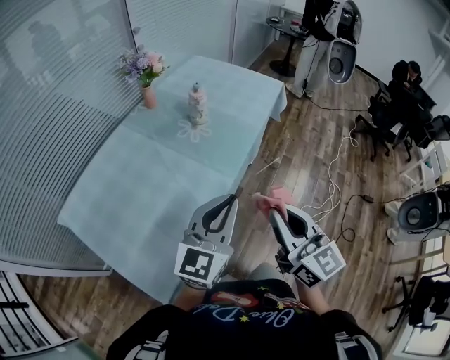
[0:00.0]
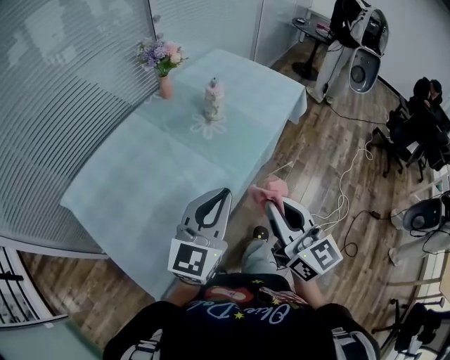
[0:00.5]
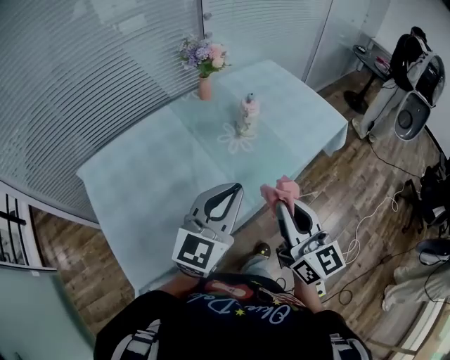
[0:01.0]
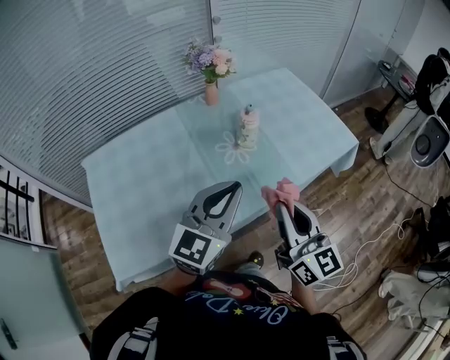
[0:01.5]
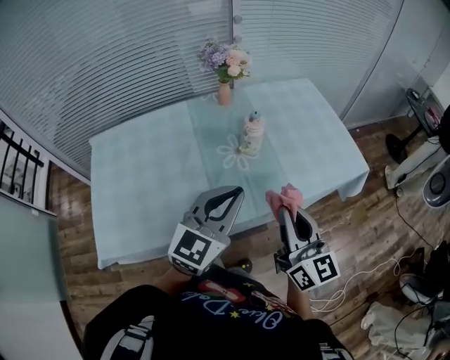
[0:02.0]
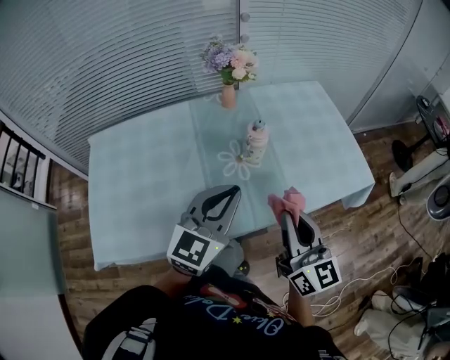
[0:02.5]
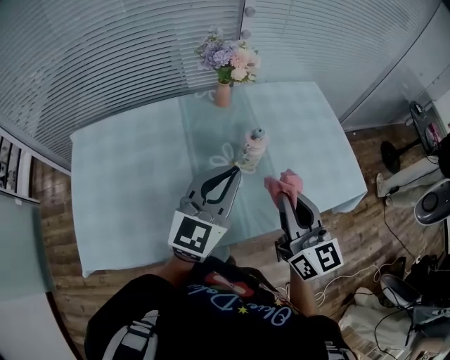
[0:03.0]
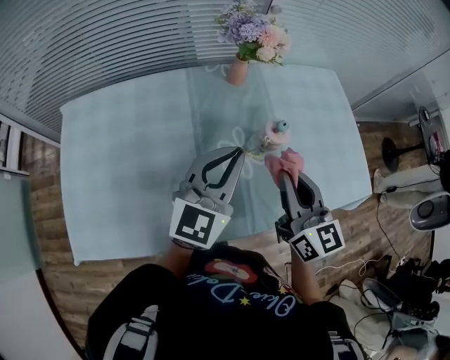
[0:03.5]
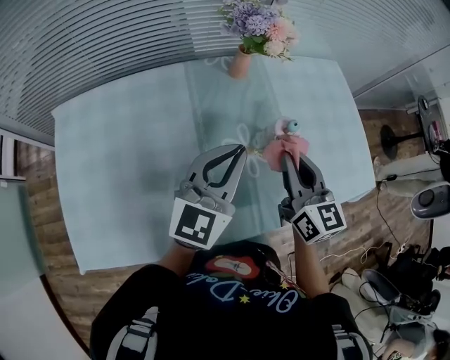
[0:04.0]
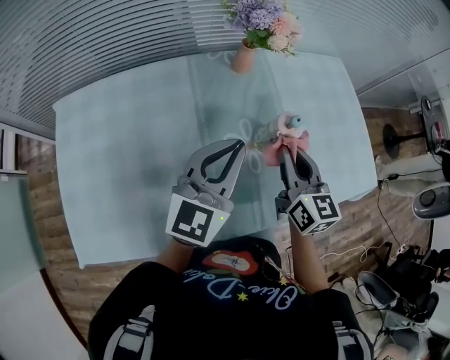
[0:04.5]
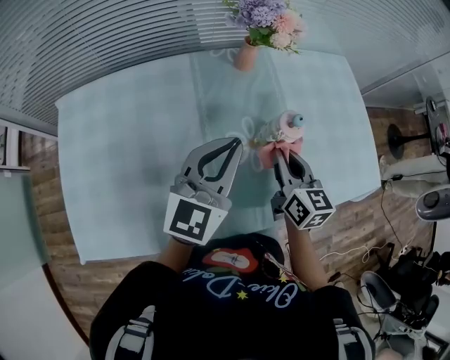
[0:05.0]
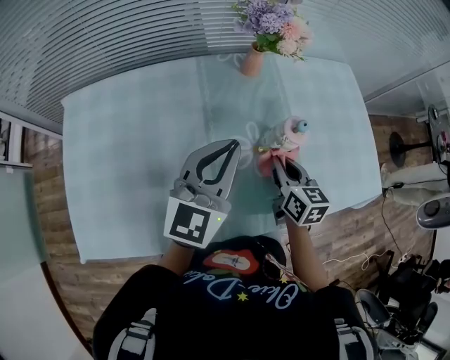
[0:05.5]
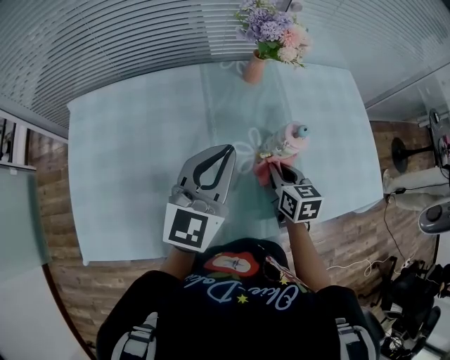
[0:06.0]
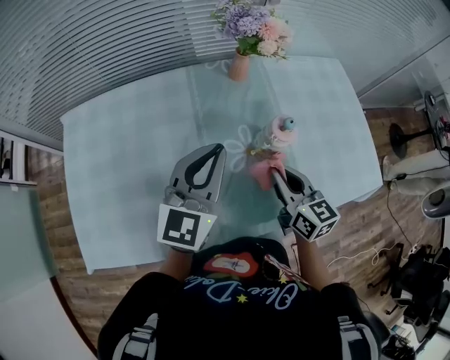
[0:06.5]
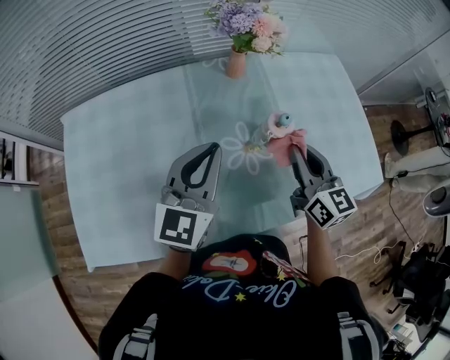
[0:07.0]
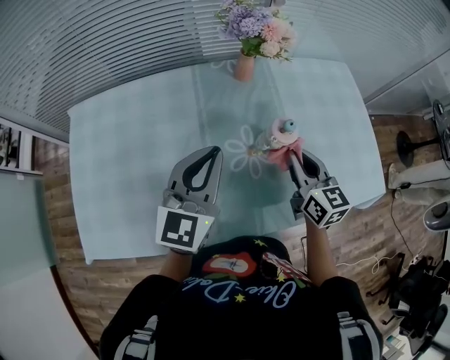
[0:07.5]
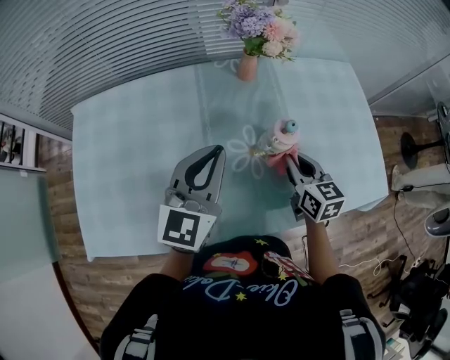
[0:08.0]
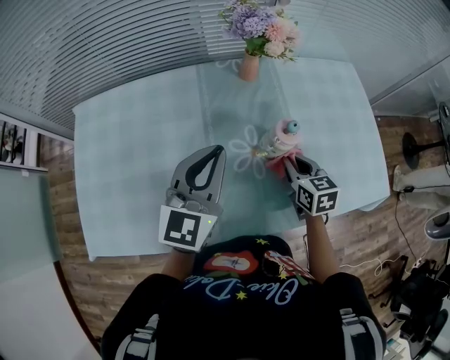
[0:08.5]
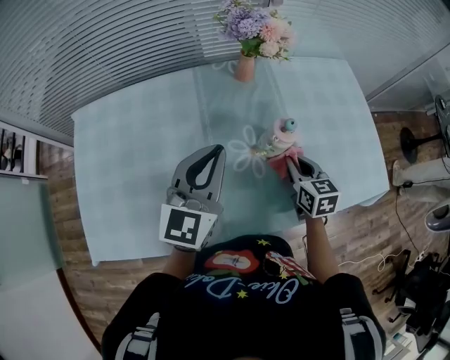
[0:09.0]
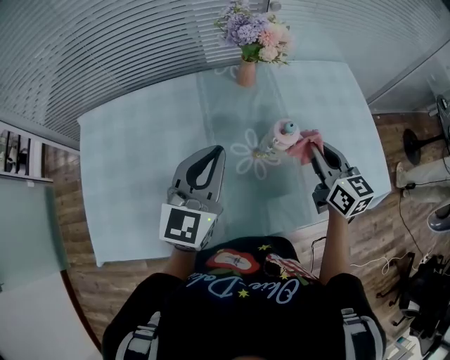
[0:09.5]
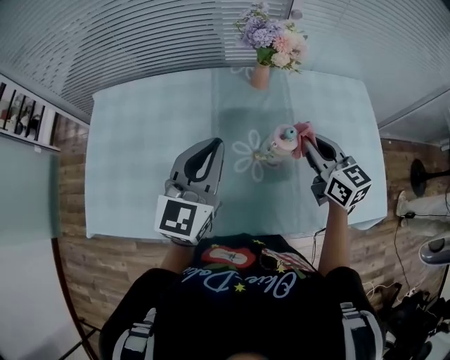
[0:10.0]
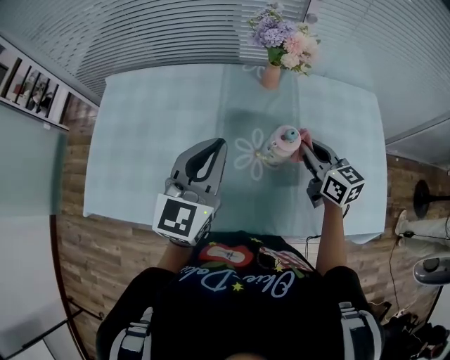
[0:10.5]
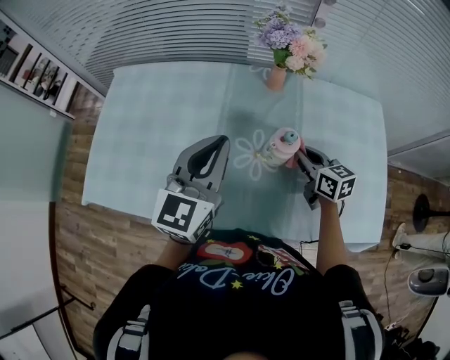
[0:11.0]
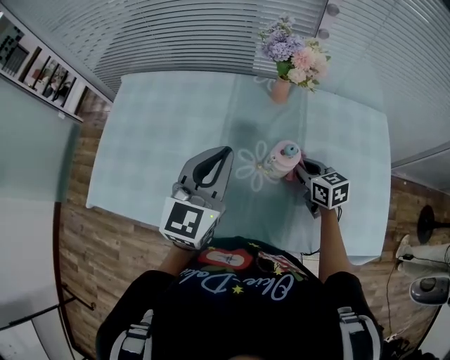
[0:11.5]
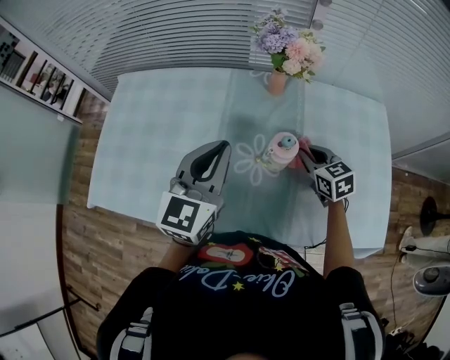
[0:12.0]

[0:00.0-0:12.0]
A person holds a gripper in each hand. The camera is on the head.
0.0 to 2.0 s: The left gripper ends up about 25 cm from where it was, and swivels approximately 40 degrees. The right gripper changes place by some 30 cm, and swivels some 30 degrees.
2.0 to 4.0 s: The left gripper is displaced forward and to the left by roughly 20 cm; the right gripper heads forward, covering some 25 cm.
4.0 to 6.0 s: The right gripper travels downward by roughly 15 cm, and swivels some 30 degrees.
6.0 to 8.0 s: The right gripper travels upward by approximately 5 cm.
8.0 to 10.0 s: The right gripper travels upward by approximately 10 cm.
10.0 to 12.0 s: The right gripper shifts approximately 10 cm downward, and changes its angle by some 20 degrees.

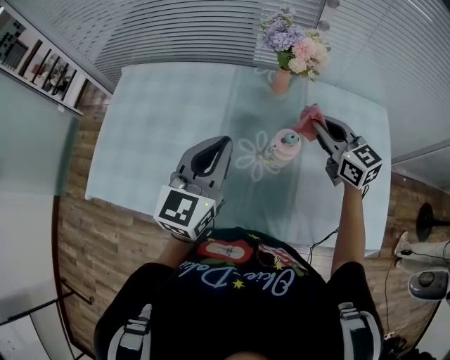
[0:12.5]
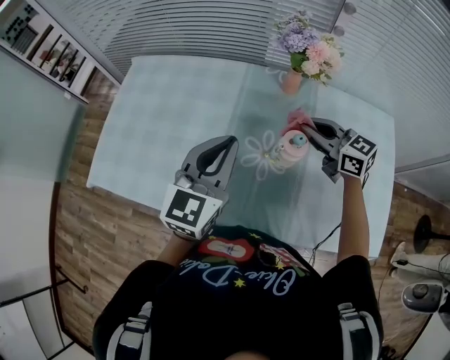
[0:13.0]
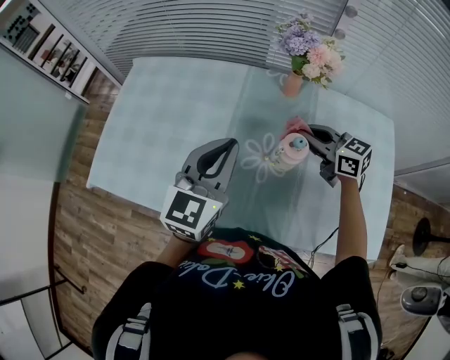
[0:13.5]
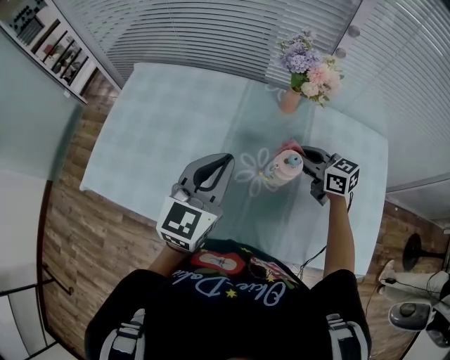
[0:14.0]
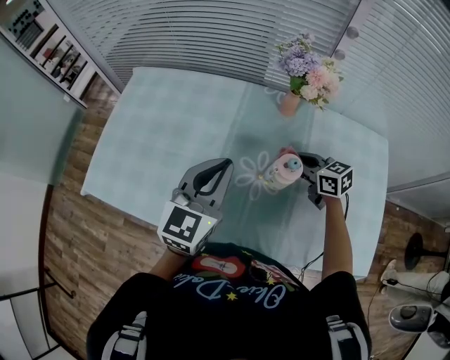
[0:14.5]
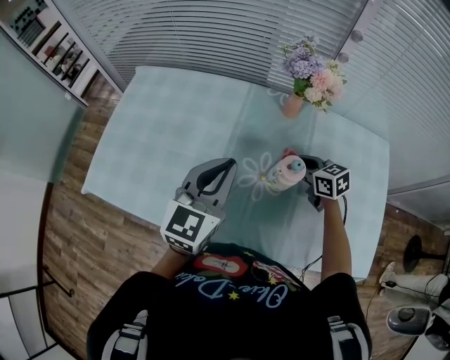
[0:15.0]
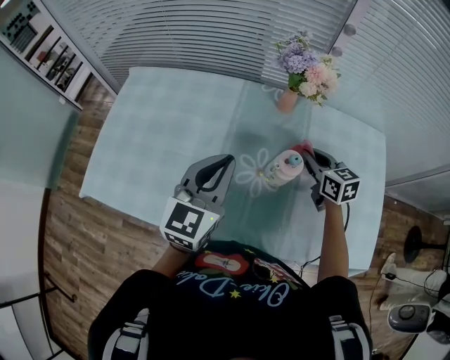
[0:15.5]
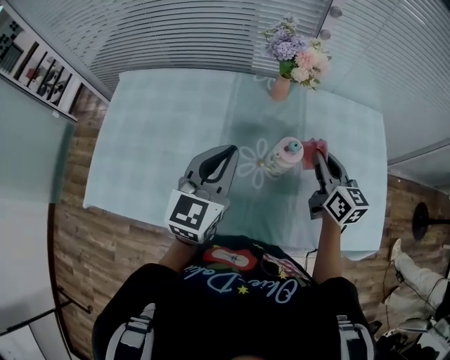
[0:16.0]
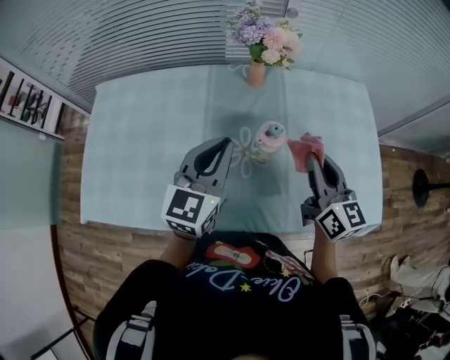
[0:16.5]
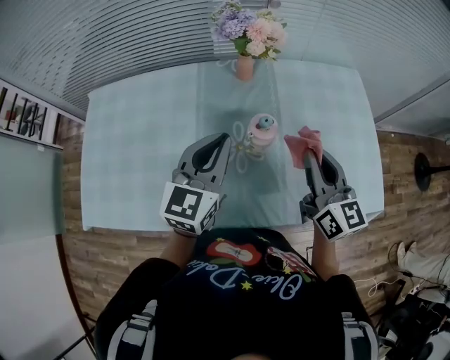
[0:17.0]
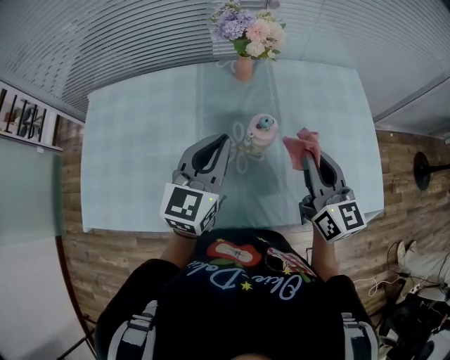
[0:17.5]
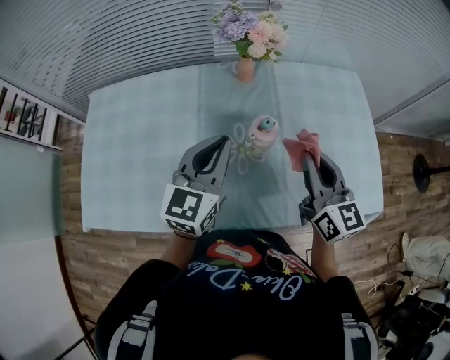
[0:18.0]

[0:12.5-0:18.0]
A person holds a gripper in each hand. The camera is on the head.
12.5 to 14.5 s: The right gripper moves downward, some 10 cm, and swivels approximately 20 degrees.
14.5 to 16.0 s: The right gripper moves upward, backward and to the right, some 10 cm, and turns by roughly 40 degrees.
16.0 to 18.0 s: The right gripper is displaced backward and upward by some 10 cm.

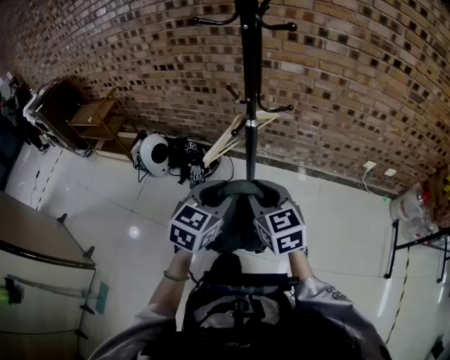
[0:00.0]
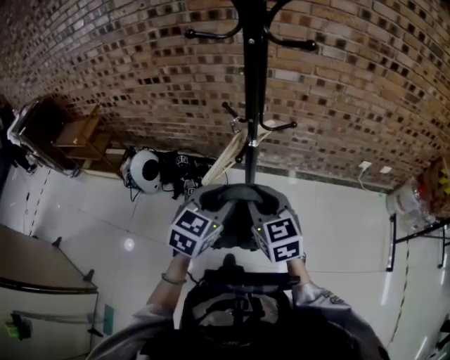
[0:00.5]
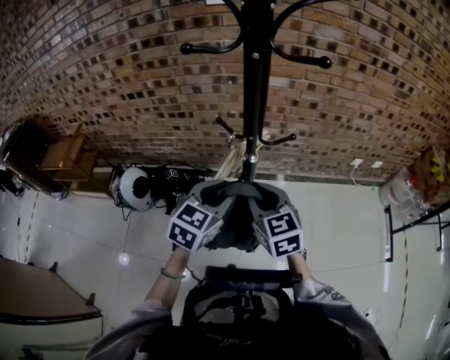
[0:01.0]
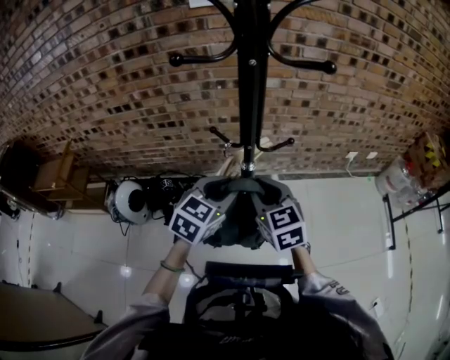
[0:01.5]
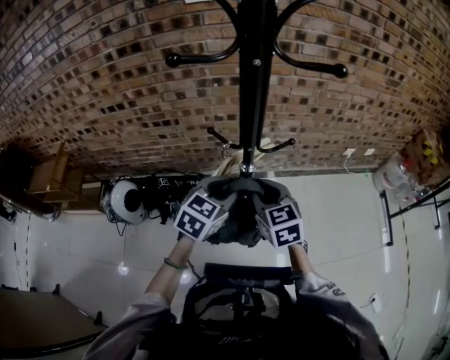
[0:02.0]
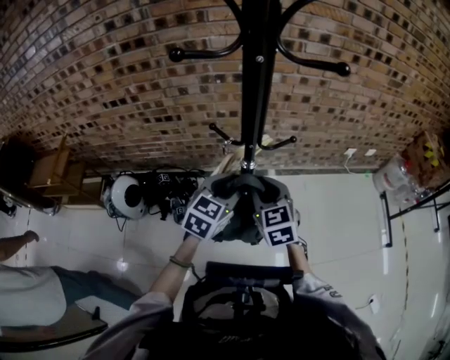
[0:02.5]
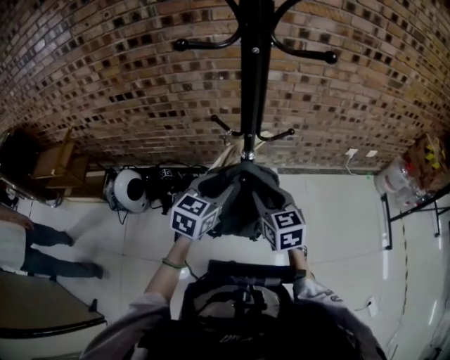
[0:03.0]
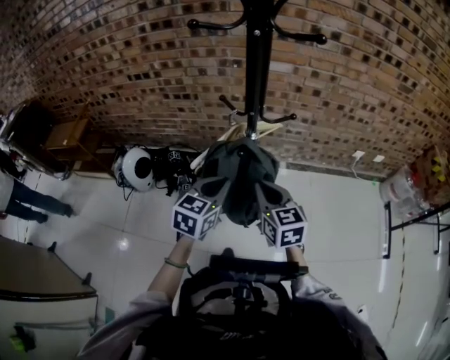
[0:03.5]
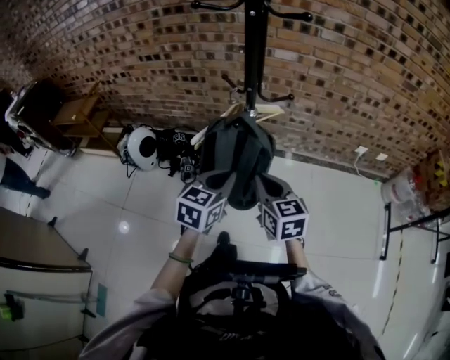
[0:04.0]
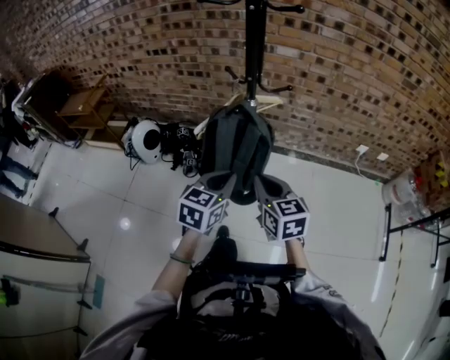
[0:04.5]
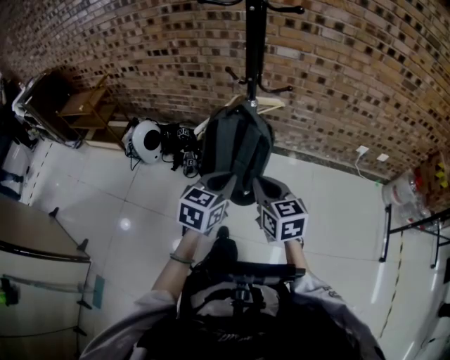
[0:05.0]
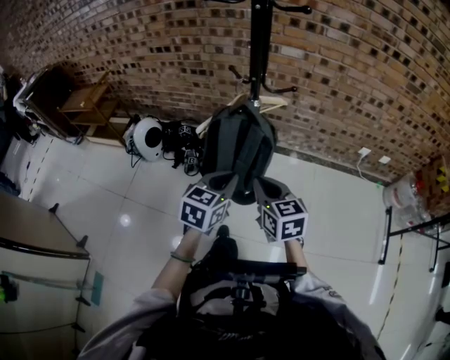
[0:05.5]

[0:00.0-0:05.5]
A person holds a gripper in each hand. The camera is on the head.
0.0 to 2.0 s: The grippers both shift forward by some 20 cm. The left gripper turns by roughly 20 degrees; the right gripper swivels roughly 20 degrees.
2.0 to 3.5 s: Both grippers travel together backward, approximately 10 cm. The left gripper closes its fingers.
3.5 to 5.5 s: The left gripper is displaced backward and to the right by about 15 cm. Meanwhile the right gripper moves backward, roughly 10 cm.

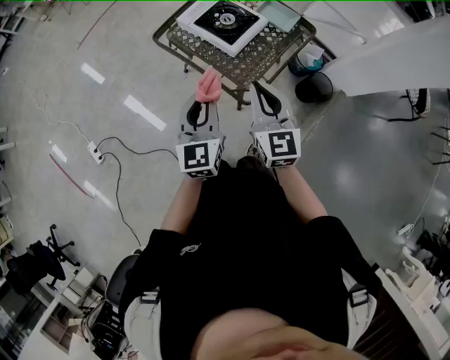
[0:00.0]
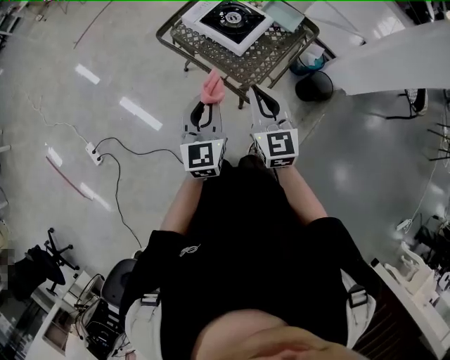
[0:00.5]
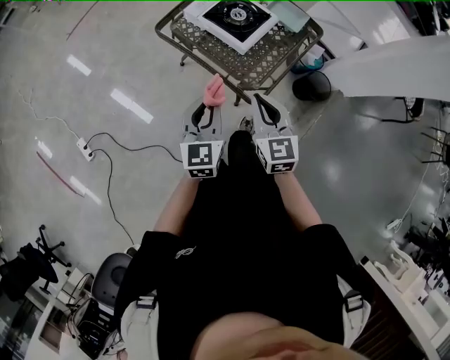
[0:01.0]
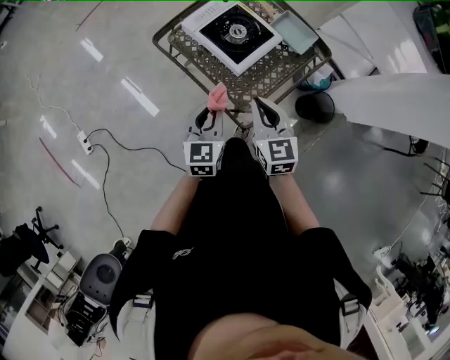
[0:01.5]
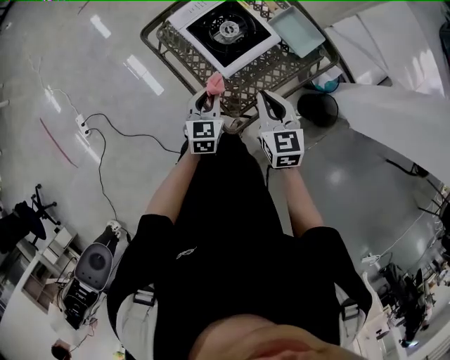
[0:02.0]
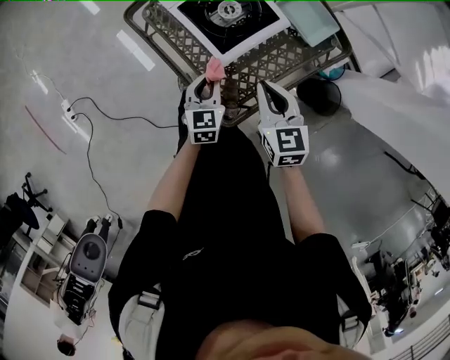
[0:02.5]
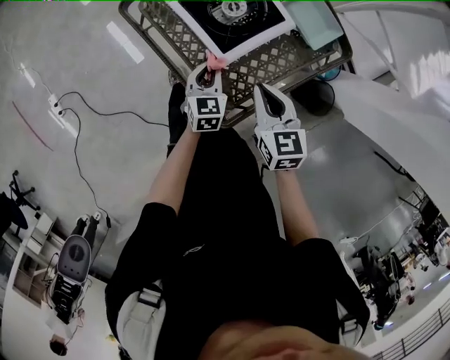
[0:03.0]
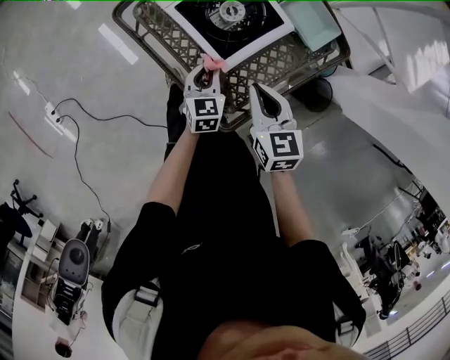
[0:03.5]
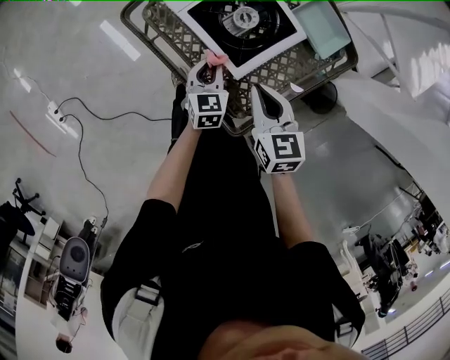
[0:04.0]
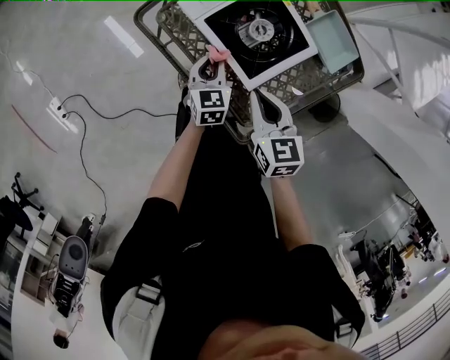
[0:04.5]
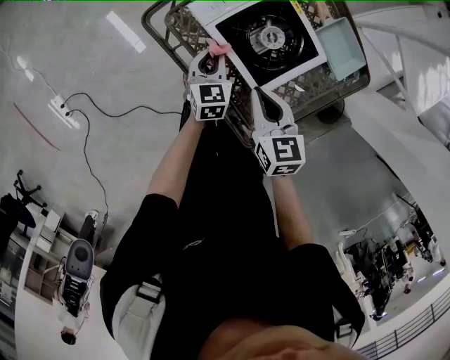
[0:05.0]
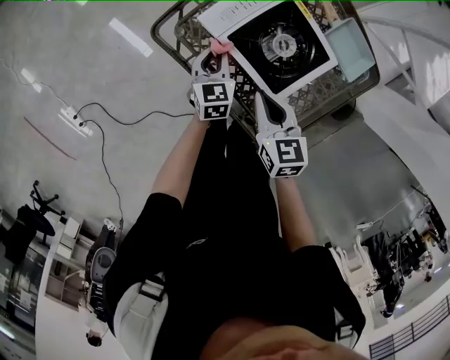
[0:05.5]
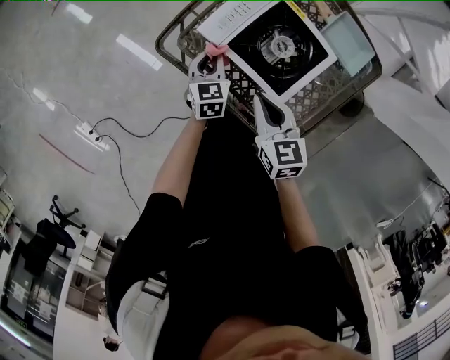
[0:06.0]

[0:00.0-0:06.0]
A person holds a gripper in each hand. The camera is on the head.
0.0 to 2.0 s: The left gripper heads downward and forward, covering some 30 cm, and changes its angle by approximately 30 degrees. Meanwhile the right gripper shifts about 25 cm forward, downward and to the right, and swivels roughly 30 degrees.
2.0 to 4.0 s: The right gripper goes about 10 cm downward, forward and to the left, while the left gripper moves downward and forward, roughly 15 cm.
4.0 to 6.0 s: The left gripper is displaced forward and to the left by about 15 cm. The right gripper travels to the left and forward by roughly 15 cm.
